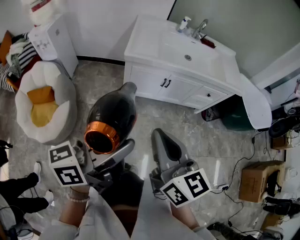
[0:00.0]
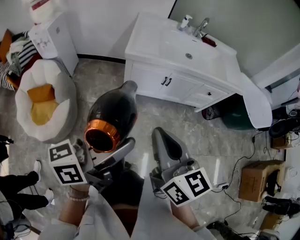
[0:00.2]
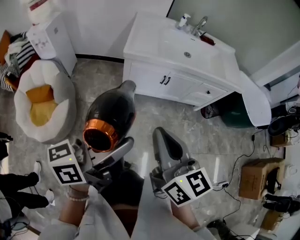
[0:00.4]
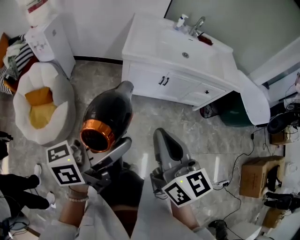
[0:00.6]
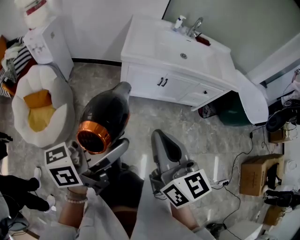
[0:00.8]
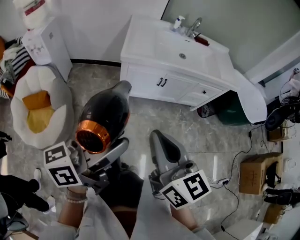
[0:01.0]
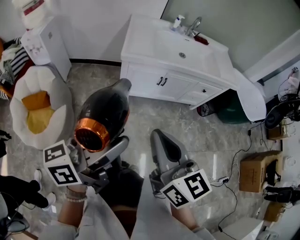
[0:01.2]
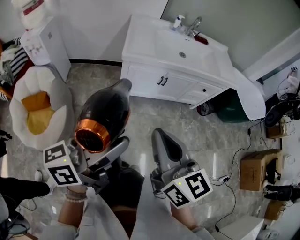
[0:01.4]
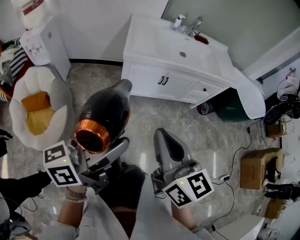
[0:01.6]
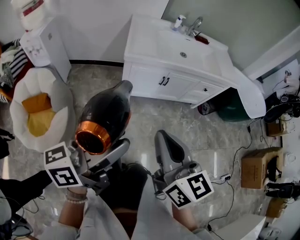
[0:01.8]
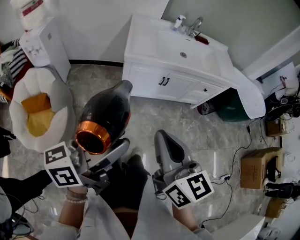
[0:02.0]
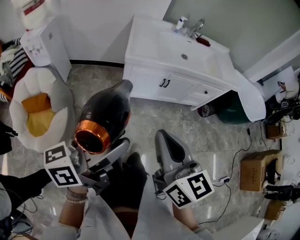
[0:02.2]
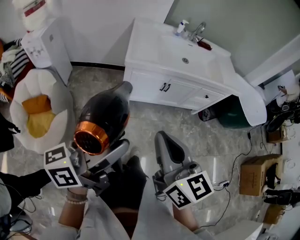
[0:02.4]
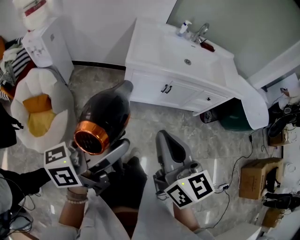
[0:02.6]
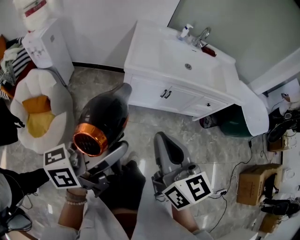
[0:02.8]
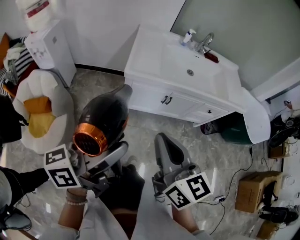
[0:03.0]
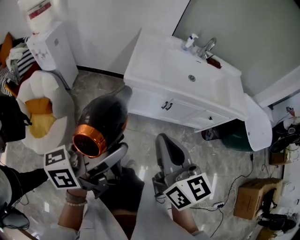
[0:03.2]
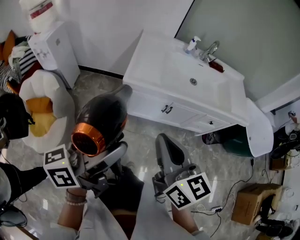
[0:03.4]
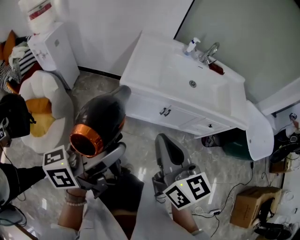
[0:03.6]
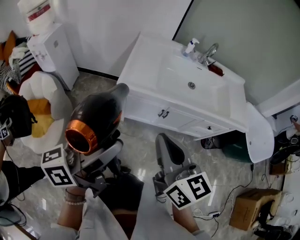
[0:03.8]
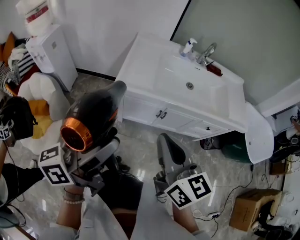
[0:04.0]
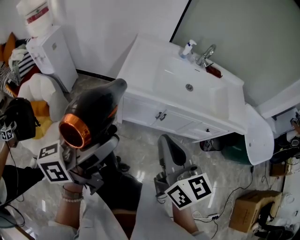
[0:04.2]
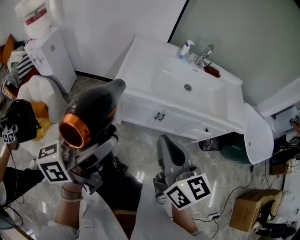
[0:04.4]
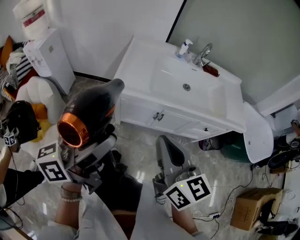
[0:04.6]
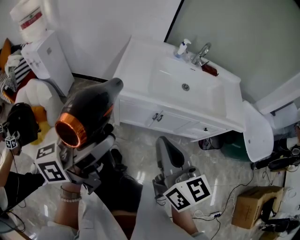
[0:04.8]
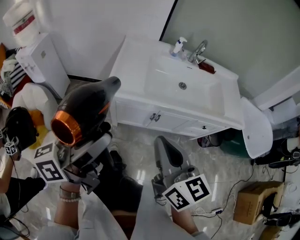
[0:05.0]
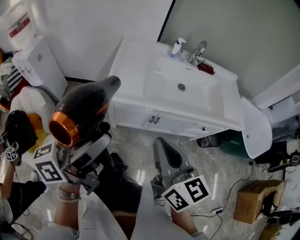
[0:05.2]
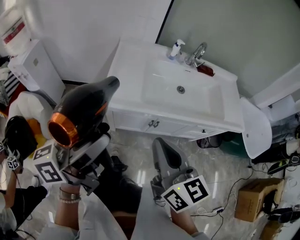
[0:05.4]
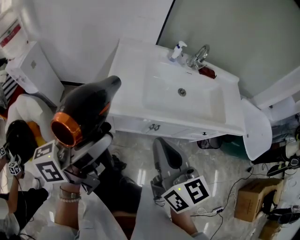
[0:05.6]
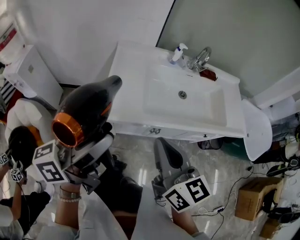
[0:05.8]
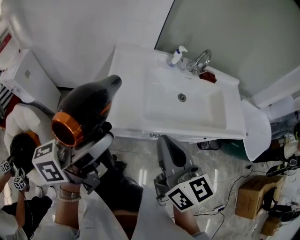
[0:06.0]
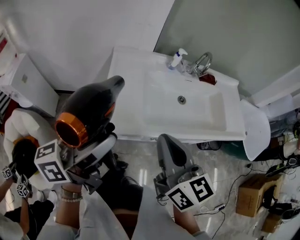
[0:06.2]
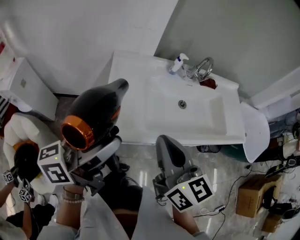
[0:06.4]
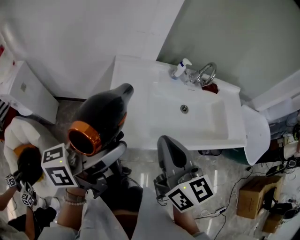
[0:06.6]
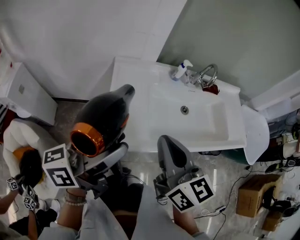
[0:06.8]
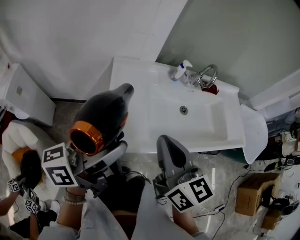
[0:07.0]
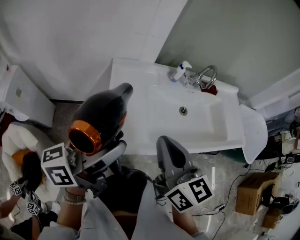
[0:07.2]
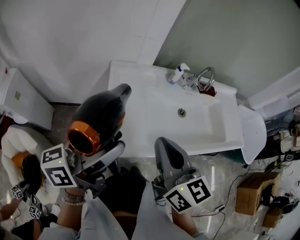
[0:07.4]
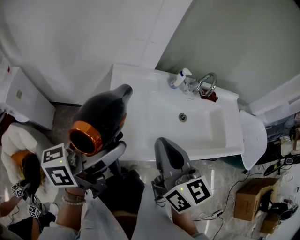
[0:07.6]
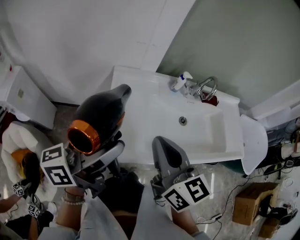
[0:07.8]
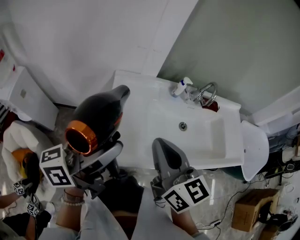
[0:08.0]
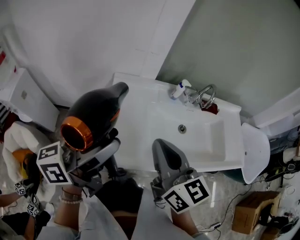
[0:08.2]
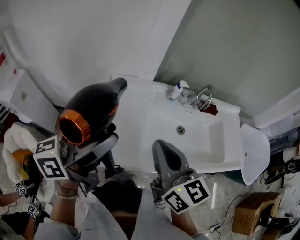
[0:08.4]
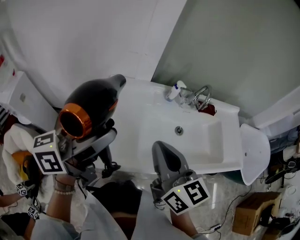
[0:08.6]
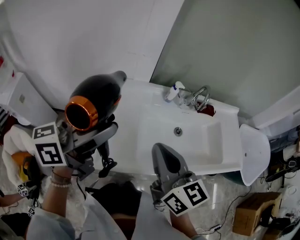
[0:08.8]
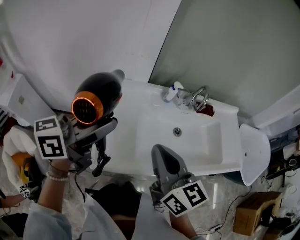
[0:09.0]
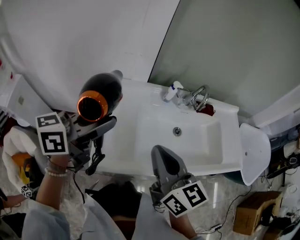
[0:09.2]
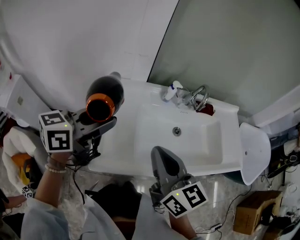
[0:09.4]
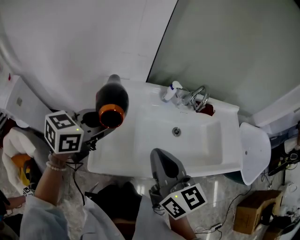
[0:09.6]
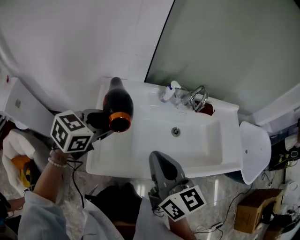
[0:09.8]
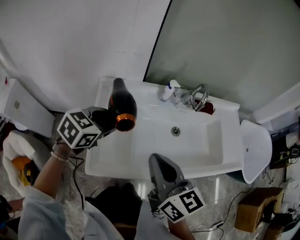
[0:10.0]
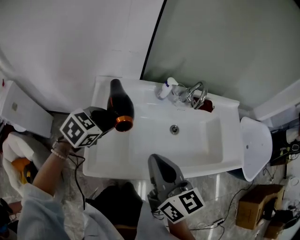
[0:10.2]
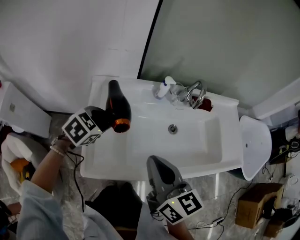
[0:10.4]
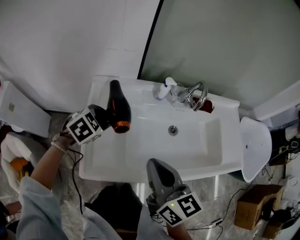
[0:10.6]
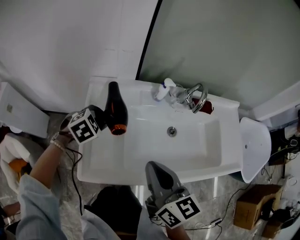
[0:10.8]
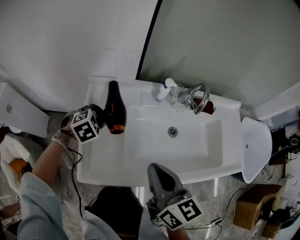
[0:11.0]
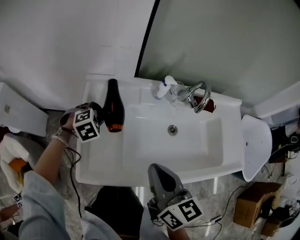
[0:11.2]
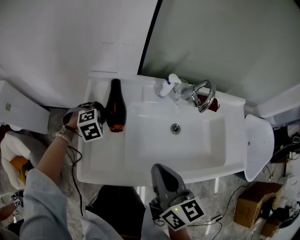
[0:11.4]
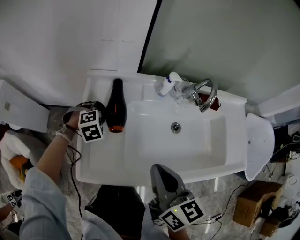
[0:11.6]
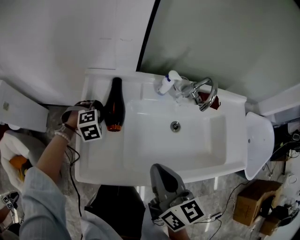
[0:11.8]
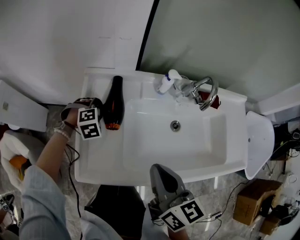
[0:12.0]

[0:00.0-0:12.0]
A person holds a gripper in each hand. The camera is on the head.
0:00.0 to 0:01.6: Both grippers travel together to the left, approximately 5 cm.
0:01.6 to 0:03.0: The two grippers go some 10 cm forward.
0:03.0 to 0:04.4: The grippers both shift forward and to the right by some 15 cm.
0:04.4 to 0:06.0: The two grippers go about 20 cm forward.
0:06.0 to 0:07.6: The grippers both shift forward and to the left by approximately 15 cm.
0:07.6 to 0:09.0: The right gripper travels to the right by roughly 5 cm; the left gripper goes about 10 cm forward.
0:09.0 to 0:10.4: The right gripper goes some 5 cm downward. Meanwhile the left gripper heads downward and forward, covering roughly 25 cm, and tilts its fingers about 50 degrees downward.
0:10.4 to 0:12.0: The right gripper heads downward, covering about 5 cm. The left gripper shifts approximately 15 cm downward and forward, and rotates roughly 40 degrees.

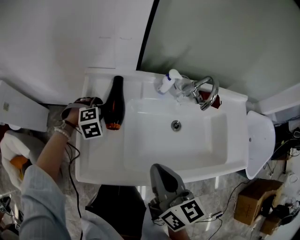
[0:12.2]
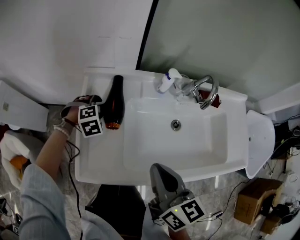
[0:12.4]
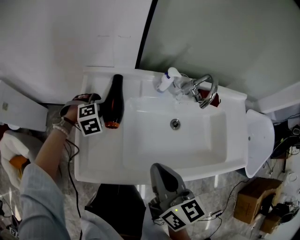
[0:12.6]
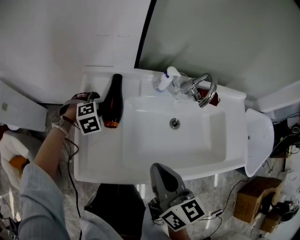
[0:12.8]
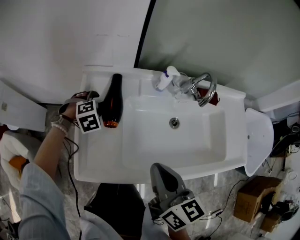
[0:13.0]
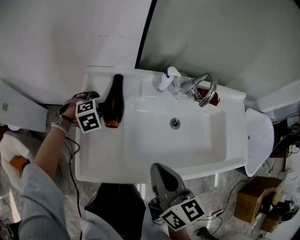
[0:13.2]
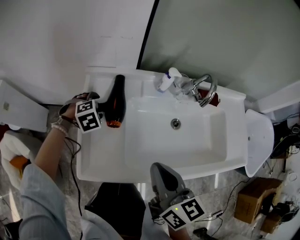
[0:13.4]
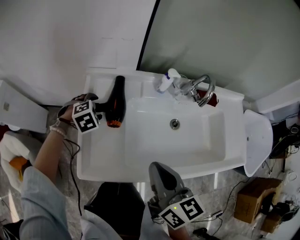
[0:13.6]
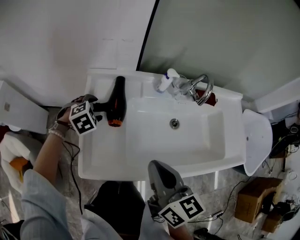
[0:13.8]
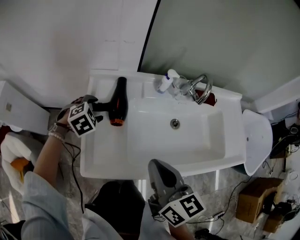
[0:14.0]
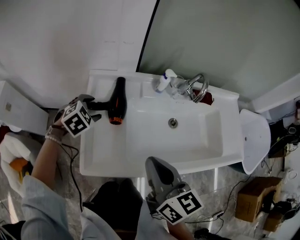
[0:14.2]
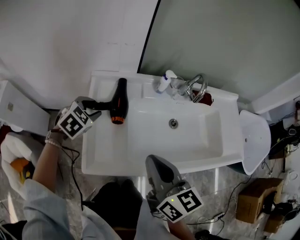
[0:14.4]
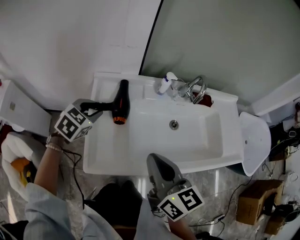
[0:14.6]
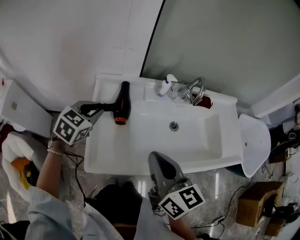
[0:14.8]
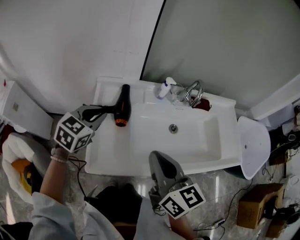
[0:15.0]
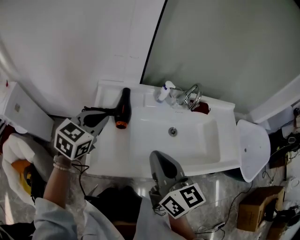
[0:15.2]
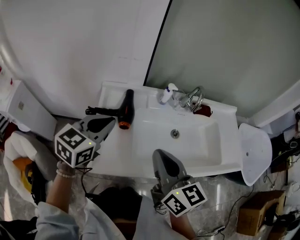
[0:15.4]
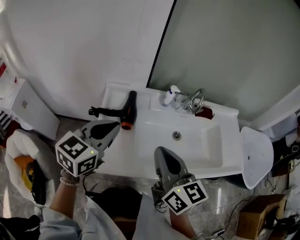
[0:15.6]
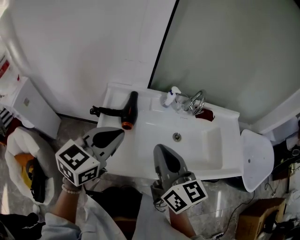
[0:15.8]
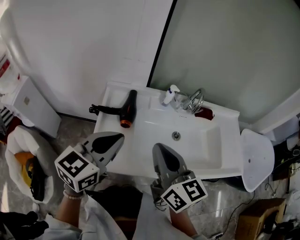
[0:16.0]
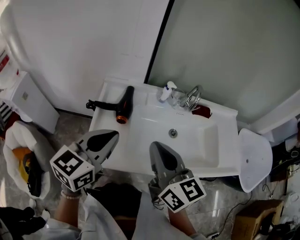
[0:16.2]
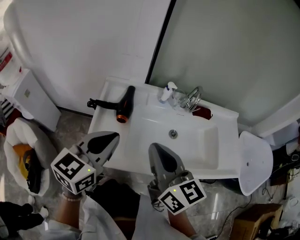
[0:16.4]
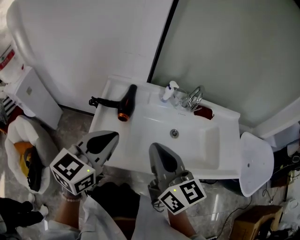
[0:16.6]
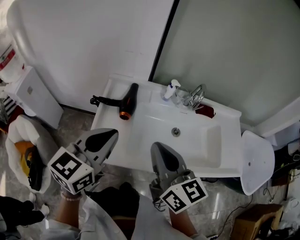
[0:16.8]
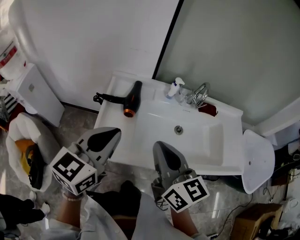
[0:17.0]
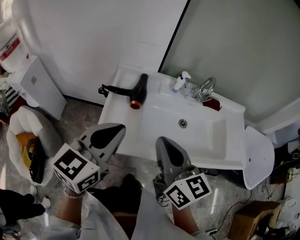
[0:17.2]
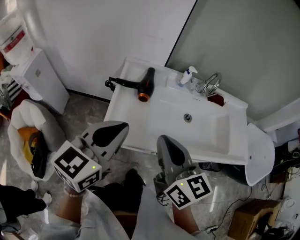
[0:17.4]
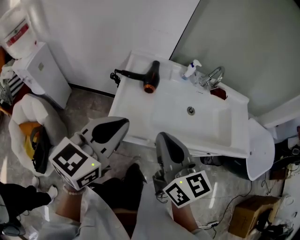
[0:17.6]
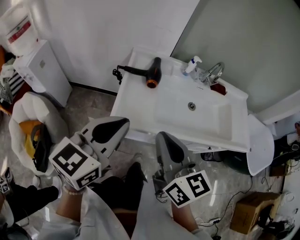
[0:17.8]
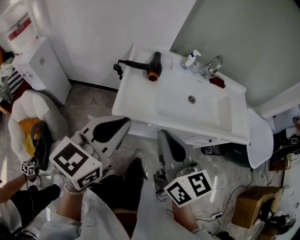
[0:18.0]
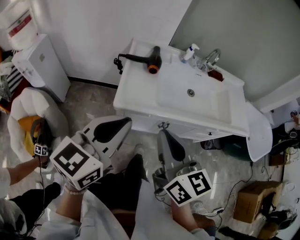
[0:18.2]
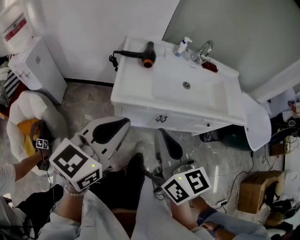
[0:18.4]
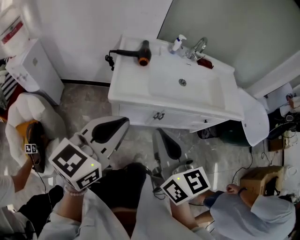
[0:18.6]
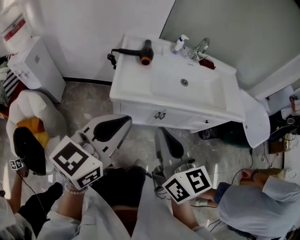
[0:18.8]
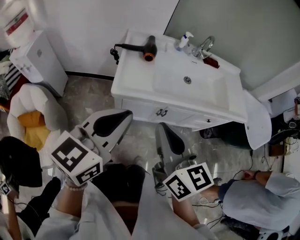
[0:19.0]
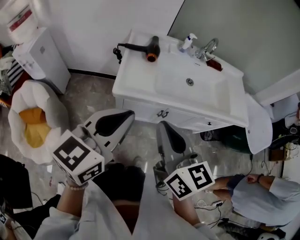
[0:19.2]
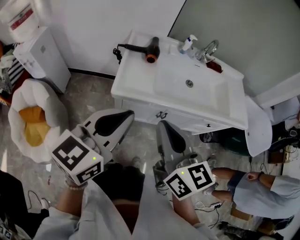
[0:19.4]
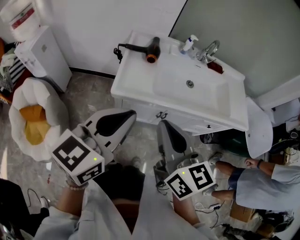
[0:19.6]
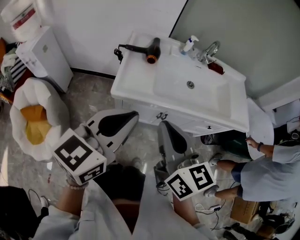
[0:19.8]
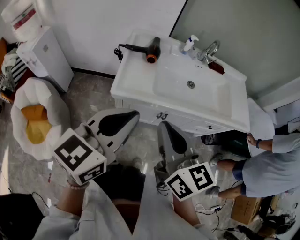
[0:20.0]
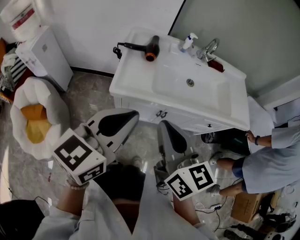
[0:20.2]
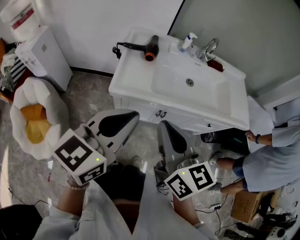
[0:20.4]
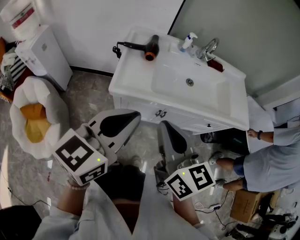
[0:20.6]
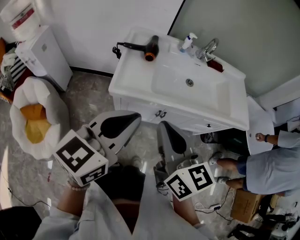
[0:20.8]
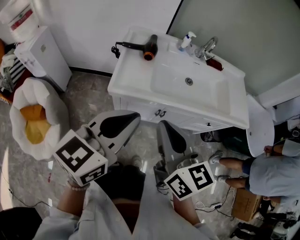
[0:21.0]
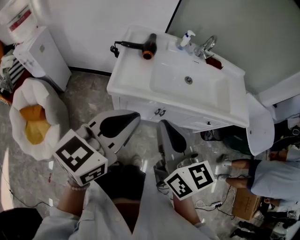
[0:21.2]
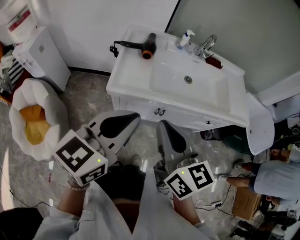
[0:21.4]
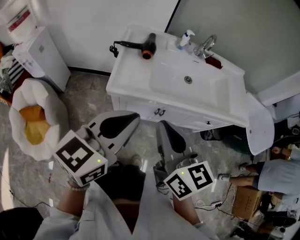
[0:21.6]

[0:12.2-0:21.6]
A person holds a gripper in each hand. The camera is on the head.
0:12.2 to 0:13.8: The left gripper goes about 5 cm upward, and opens its fingers.
0:13.8 to 0:15.4: The right gripper heads upward, covering about 5 cm. The left gripper is displaced upward and backward by some 25 cm, tilts its fingers roughly 50 degrees upward, and closes its fingers.
0:15.4 to 0:17.0: The left gripper moves backward and upward, about 15 cm.
0:17.0 to 0:18.4: The two grippers go approximately 25 cm backward.
0:18.4 to 0:20.0: The left gripper goes roughly 5 cm to the right.
0:20.0 to 0:21.6: The grippers stay close to where they were, moving slightly.

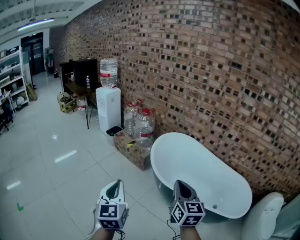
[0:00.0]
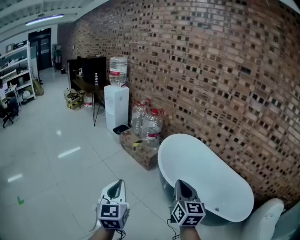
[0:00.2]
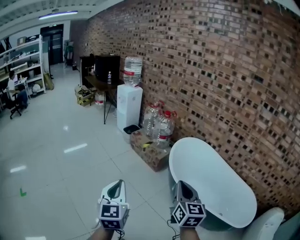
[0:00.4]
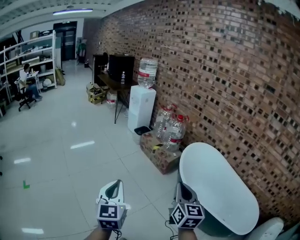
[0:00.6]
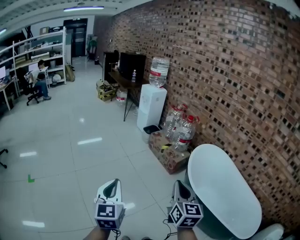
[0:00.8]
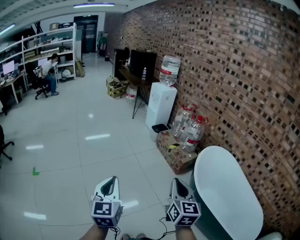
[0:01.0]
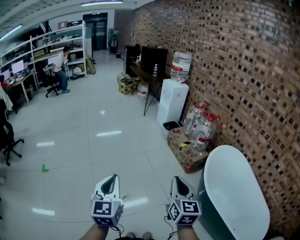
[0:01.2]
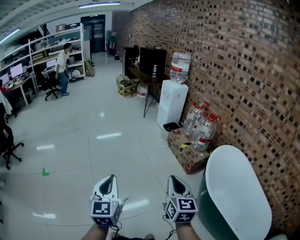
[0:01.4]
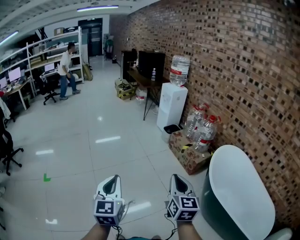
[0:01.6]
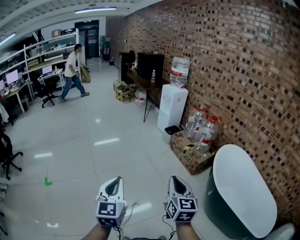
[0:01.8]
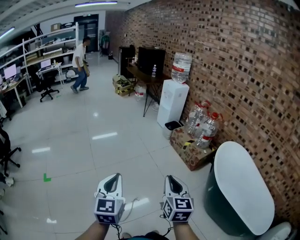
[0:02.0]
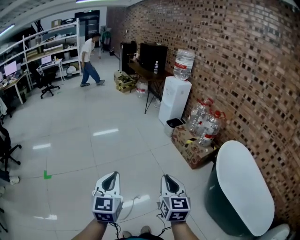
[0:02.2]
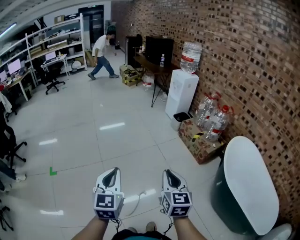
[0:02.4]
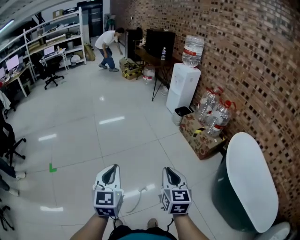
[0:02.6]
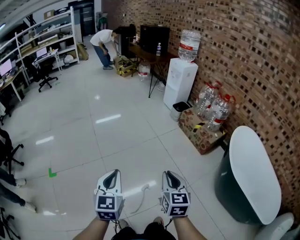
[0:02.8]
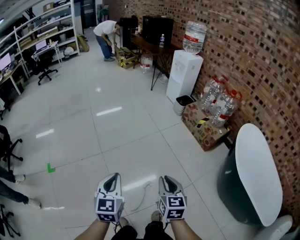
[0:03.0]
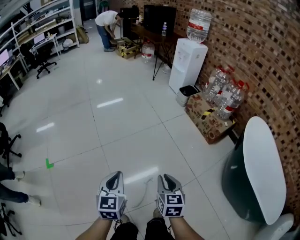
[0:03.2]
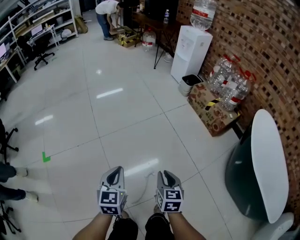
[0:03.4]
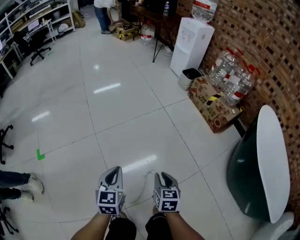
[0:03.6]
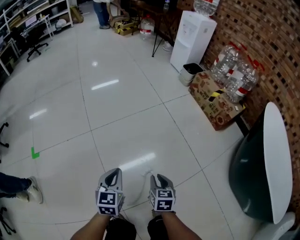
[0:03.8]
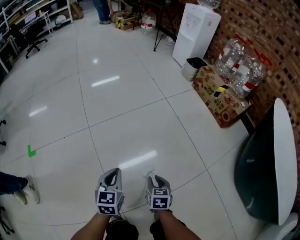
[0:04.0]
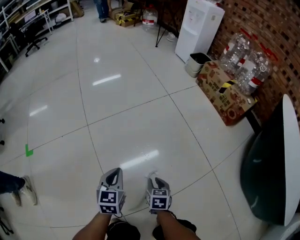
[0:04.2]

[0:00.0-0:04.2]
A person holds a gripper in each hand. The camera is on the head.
0:00.0 to 0:01.4: The left gripper shifts by roughly 35 cm, and rotates roughly 30 degrees, while the right gripper changes place by roughly 35 cm, and swivels approximately 30 degrees.
0:01.4 to 0:02.8: The left gripper is displaced to the left, downward and forward by some 25 cm, while the right gripper heads to the left and downward, covering approximately 30 cm.
0:02.8 to 0:04.2: Both grippers travel together downward, roughly 70 cm. The right gripper tips its fingers downward by about 30 degrees.
